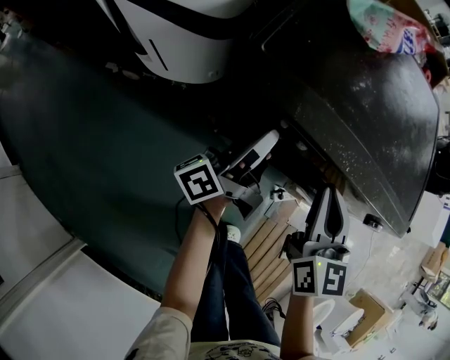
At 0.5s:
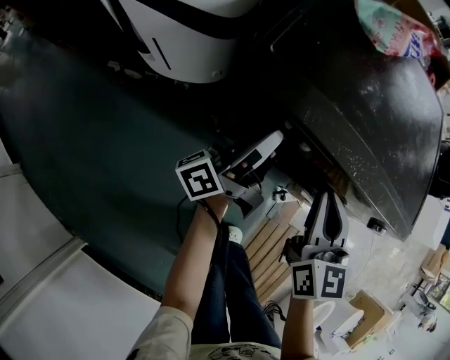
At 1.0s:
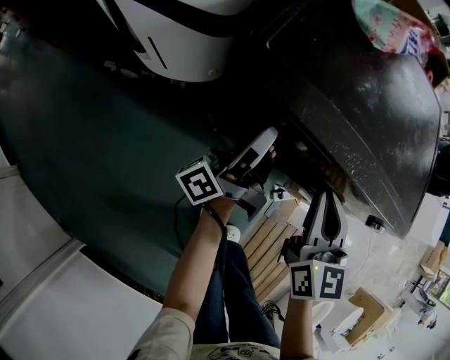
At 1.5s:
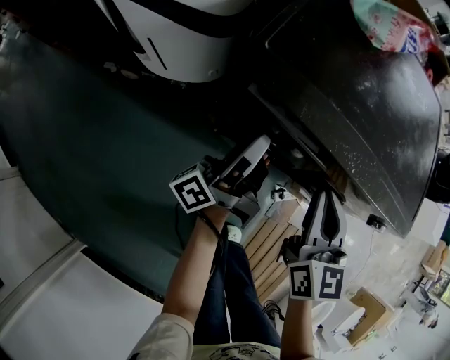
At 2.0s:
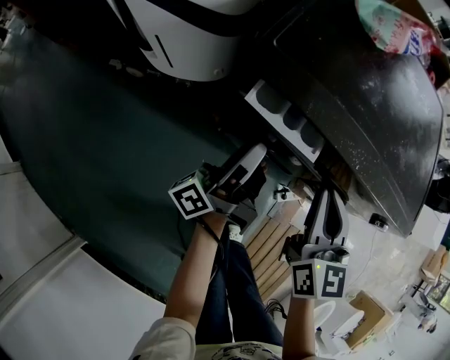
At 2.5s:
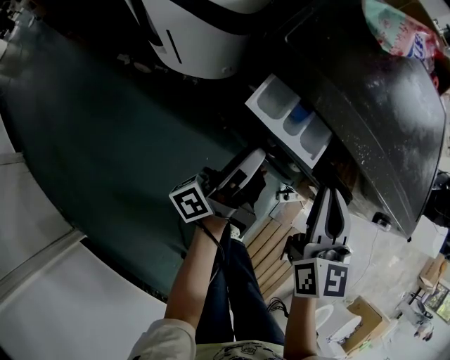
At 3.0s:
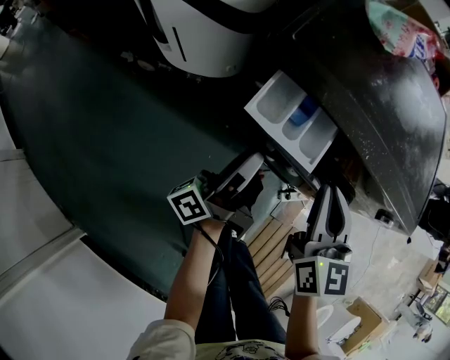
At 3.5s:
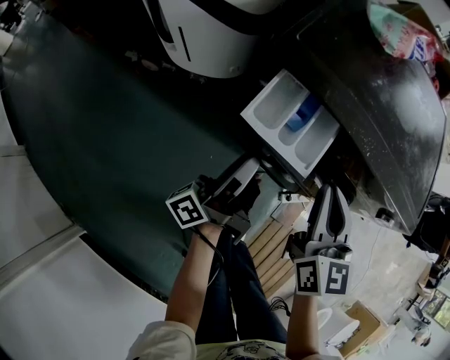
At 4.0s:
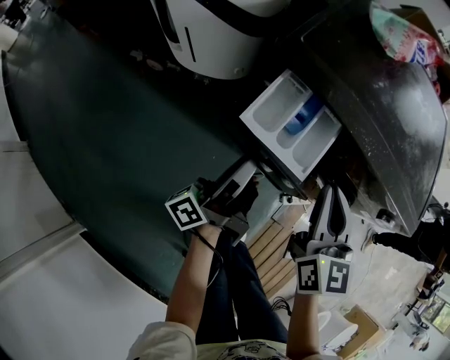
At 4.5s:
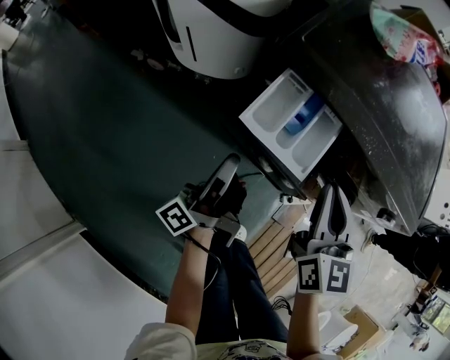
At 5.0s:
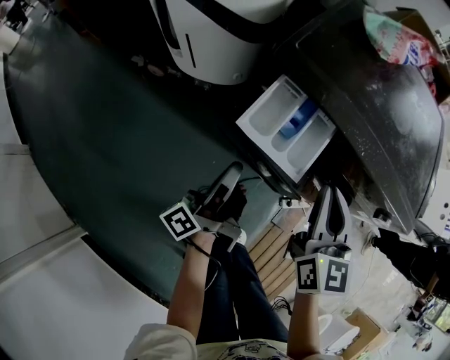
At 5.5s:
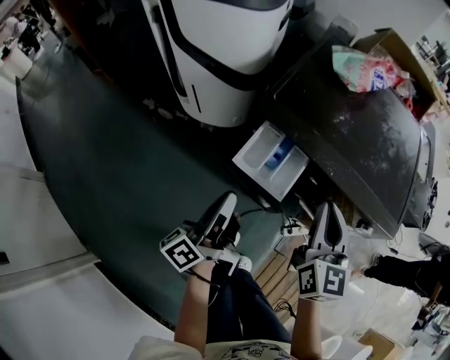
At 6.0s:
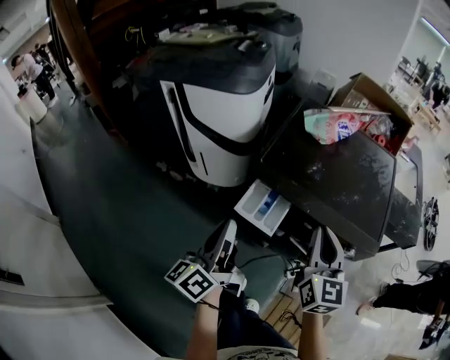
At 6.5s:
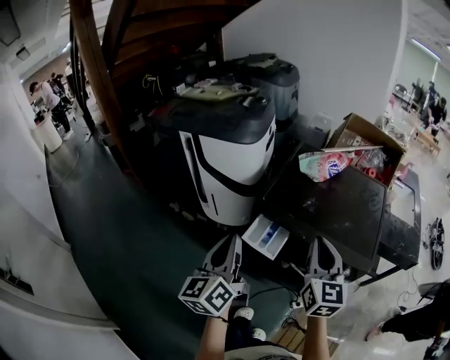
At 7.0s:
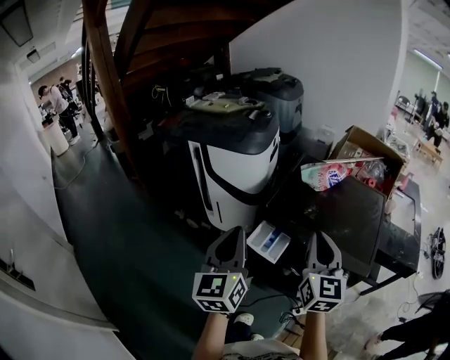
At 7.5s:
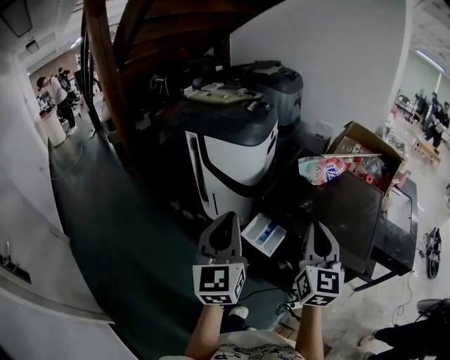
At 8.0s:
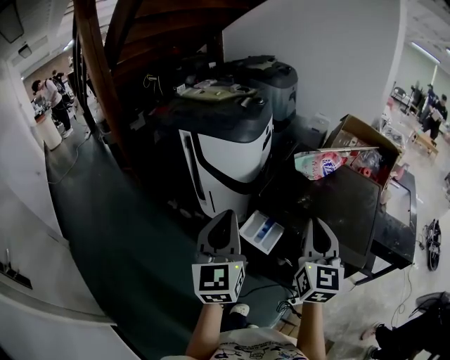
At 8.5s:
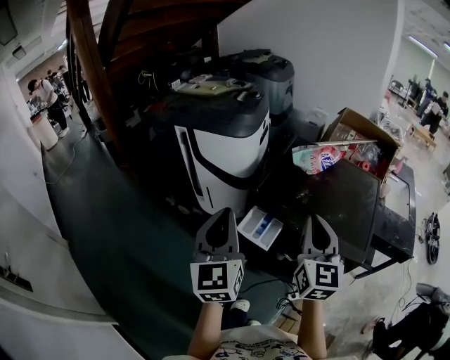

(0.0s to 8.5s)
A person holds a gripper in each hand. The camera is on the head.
0.0s - 2.0s: The left gripper shifts by some 5 cm.
2.0s - 4.0s: The left gripper is displaced backward by about 10 cm.
4.0s - 6.5s: Both grippers move upward, approximately 35 cm. The left gripper twists approximately 60 degrees clockwise, seen from behind, and closes up.
6.5s - 8.5s: Both grippers travel together upward, about 5 cm. The left gripper changes its angle by about 30 degrees.

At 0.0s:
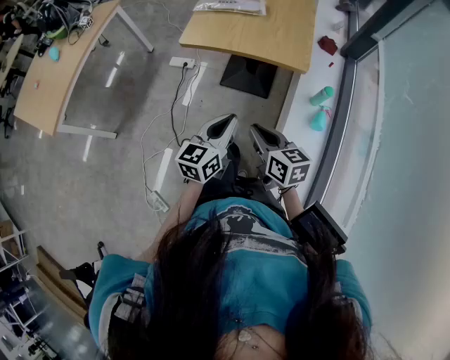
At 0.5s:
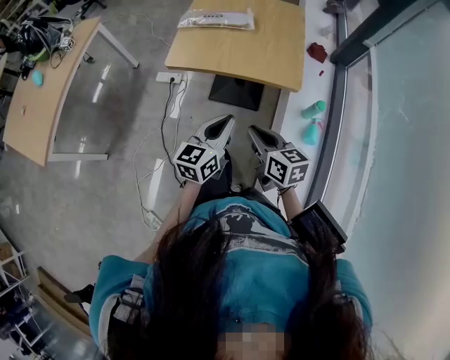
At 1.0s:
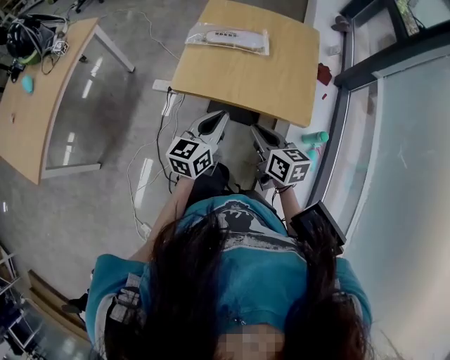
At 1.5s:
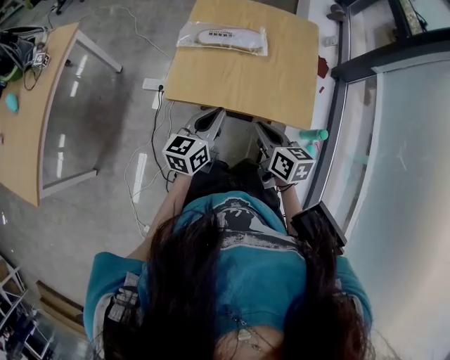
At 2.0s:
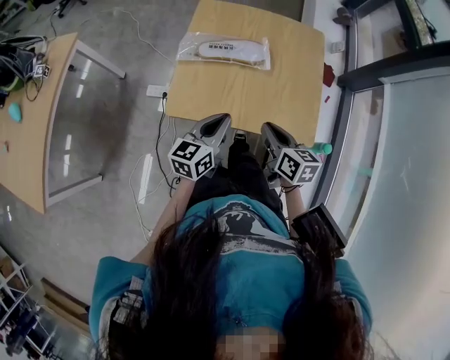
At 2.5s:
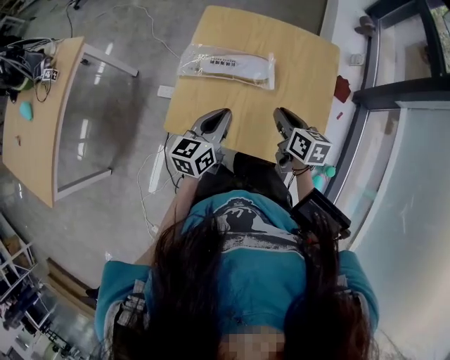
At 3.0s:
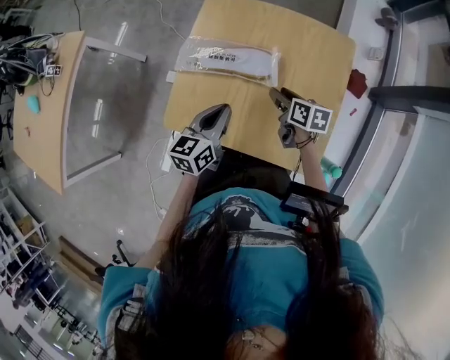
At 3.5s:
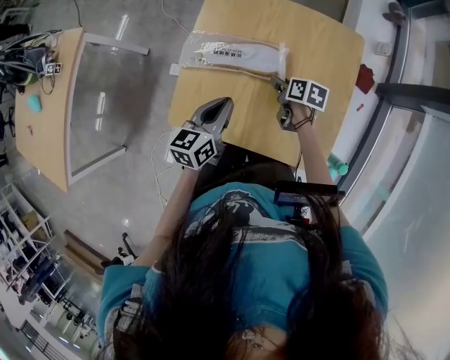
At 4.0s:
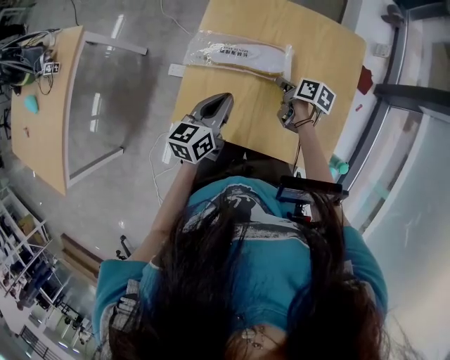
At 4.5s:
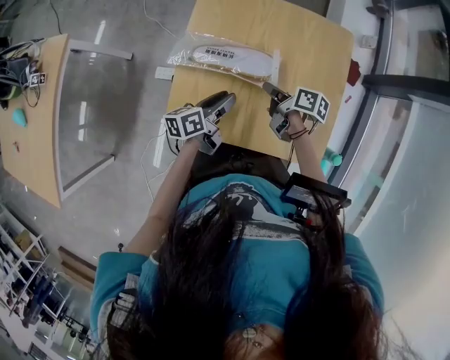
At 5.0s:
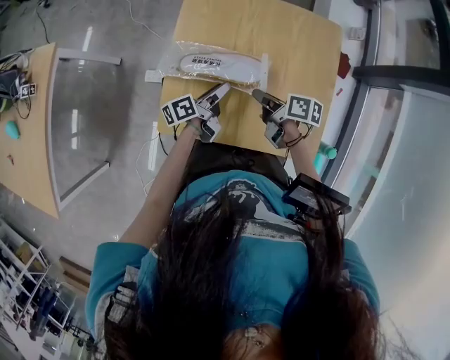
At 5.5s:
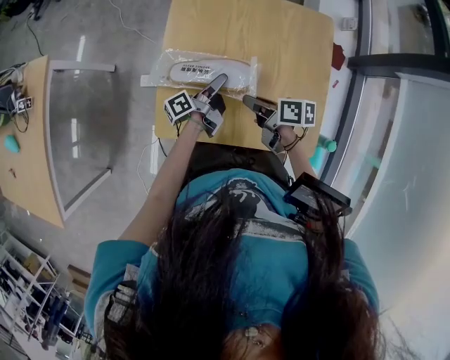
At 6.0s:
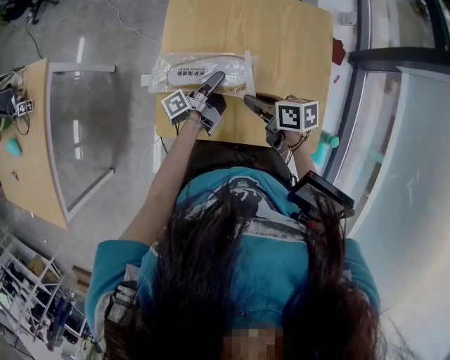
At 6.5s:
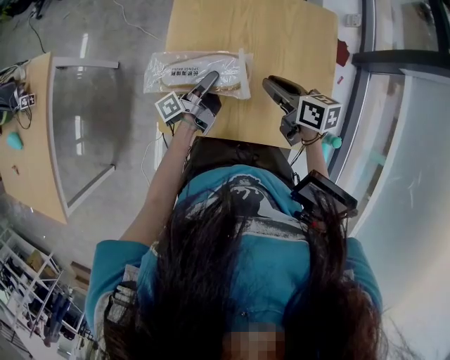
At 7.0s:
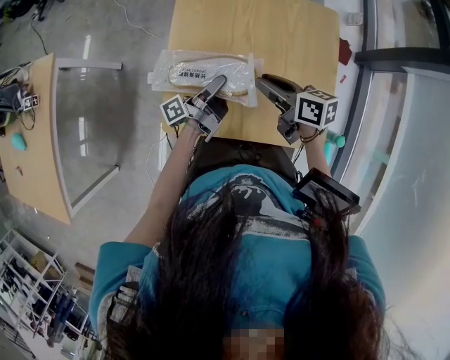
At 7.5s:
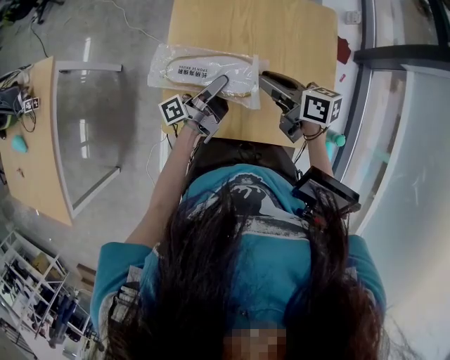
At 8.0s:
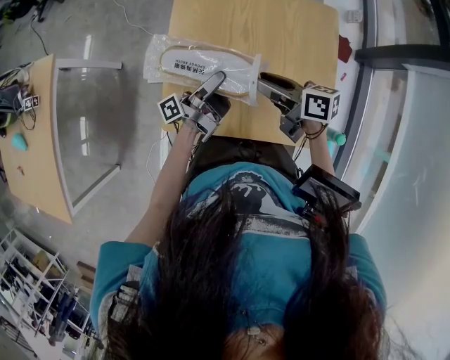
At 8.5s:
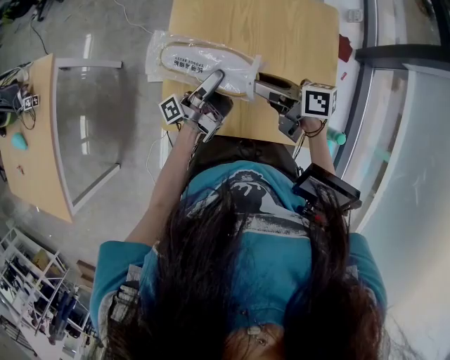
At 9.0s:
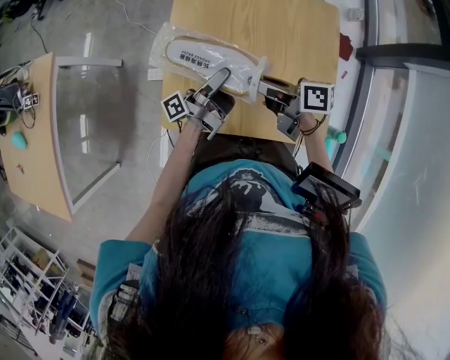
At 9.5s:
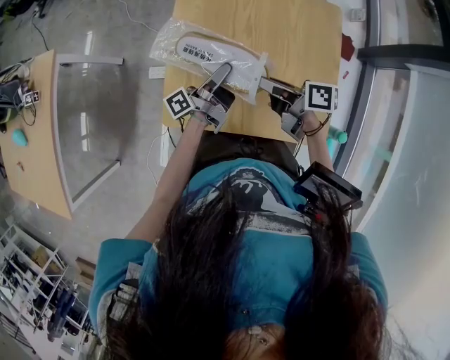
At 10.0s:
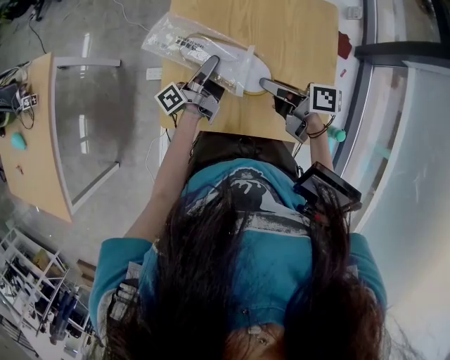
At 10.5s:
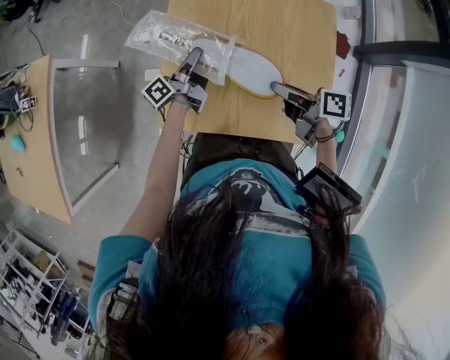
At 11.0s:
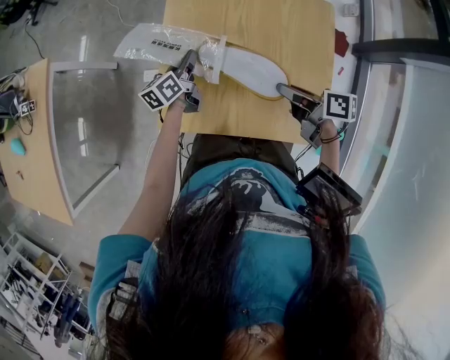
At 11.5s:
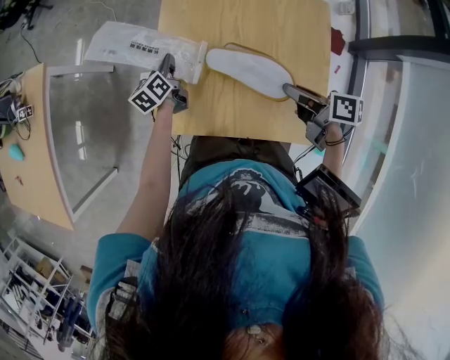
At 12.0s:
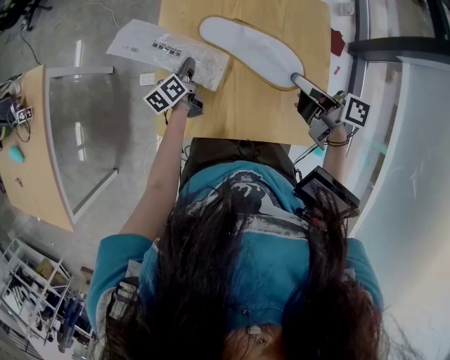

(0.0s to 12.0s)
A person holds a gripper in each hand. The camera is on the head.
0.0s - 2.0s: The pair of grippers is taken forward, about 40 cm.
2.0s - 4.0s: The right gripper is displaced forward and downward by some 30 cm, swivels some 40 degrees, and opens, then closes again, while the left gripper travels forward by roughly 15 cm.
4.0s - 6.0s: The left gripper moves downward and forward, approximately 10 cm, twists approximately 60 degrees counterclockwise, seen from behind, and opens its fingers. Meanwhile the right gripper is displaced upward, backward and to the left by about 15 cm, and rotates about 30 degrees.
6.0s - 8.0s: The two grippers go some 10 cm upward. The right gripper opens up. Meanwhile the left gripper rotates about 20 degrees.
8.0s - 10.0s: The left gripper changes place by about 5 cm.
10.0s - 12.0s: The right gripper moves to the right and upward, roughly 10 cm, while the left gripper travels downward and forward by some 10 cm, tilts its fingers about 30 degrees downward, and closes.

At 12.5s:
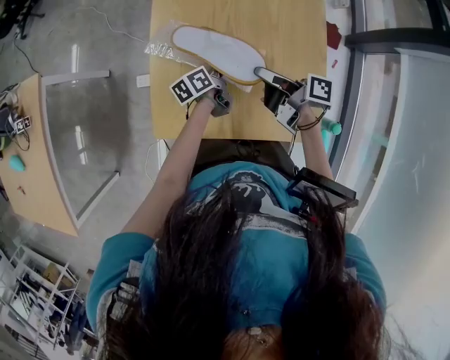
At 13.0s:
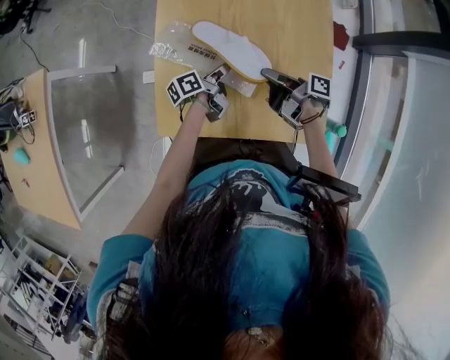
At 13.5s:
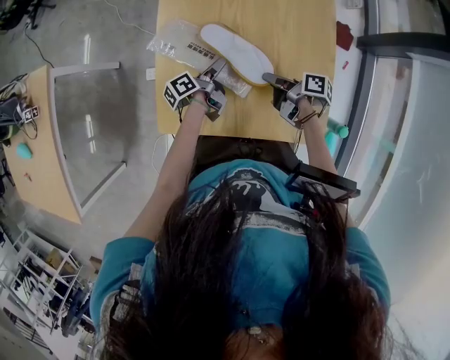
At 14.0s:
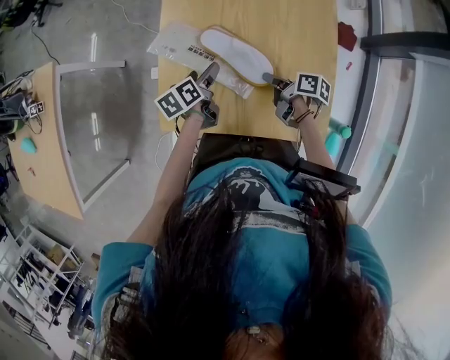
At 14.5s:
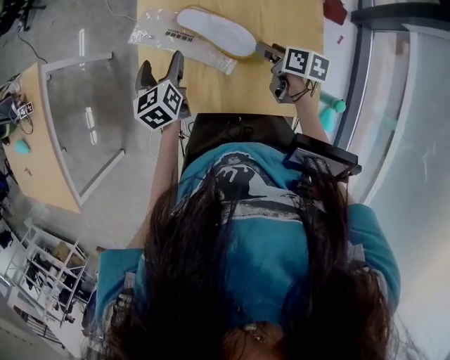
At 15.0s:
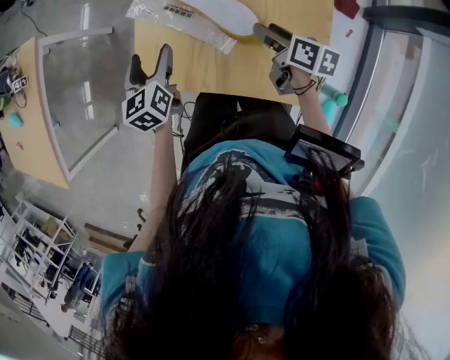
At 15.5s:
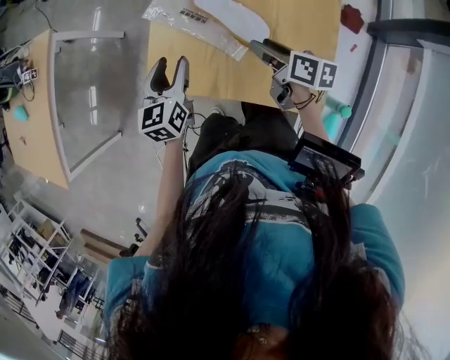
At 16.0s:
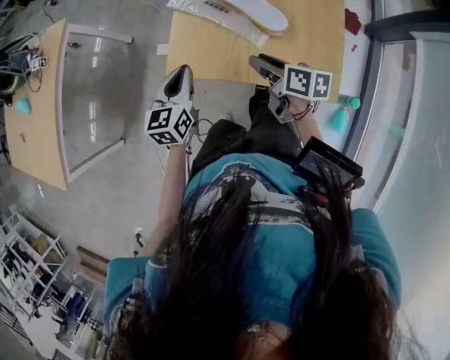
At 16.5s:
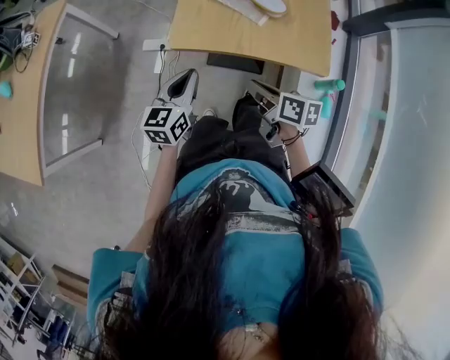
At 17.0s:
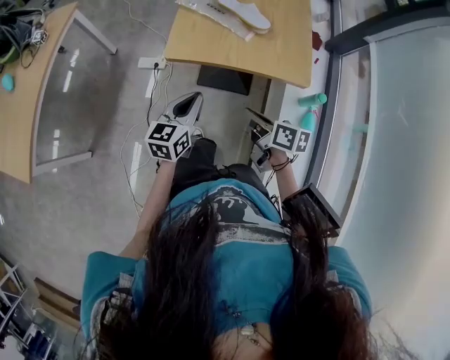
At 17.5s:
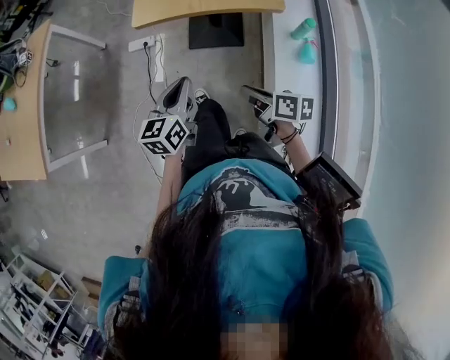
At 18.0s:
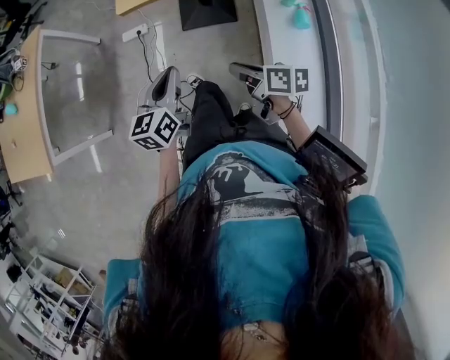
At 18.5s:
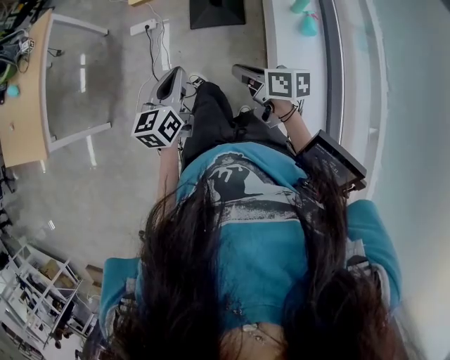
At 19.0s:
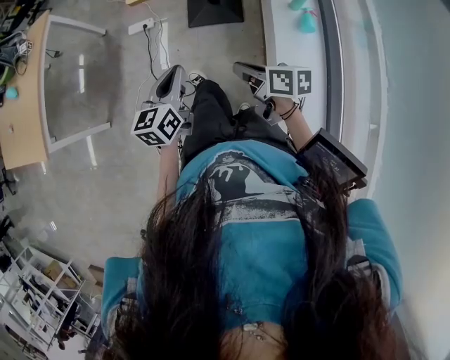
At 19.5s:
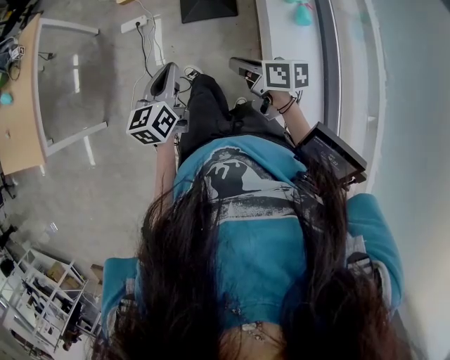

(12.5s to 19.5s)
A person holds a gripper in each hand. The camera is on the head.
12.5s - 14.5s: The right gripper goes approximately 10 cm downward and to the right, changes its angle by some 40 degrees, and opens its fingers. Meanwhile the left gripper is displaced to the left and upward by some 15 cm, turns by about 50 degrees, and opens.
14.5s - 16.0s: The right gripper heads to the left, backward and upward, covering roughly 25 cm, and swivels roughly 20 degrees. Meanwhile the left gripper travels backward and to the left by roughly 20 cm, and closes its fingers.
16.0s - 17.5s: The two grippers go approximately 40 cm backward. The right gripper closes.
17.5s - 19.5s: The two grippers go some 10 cm backward.
